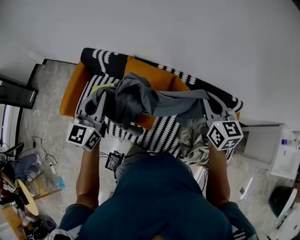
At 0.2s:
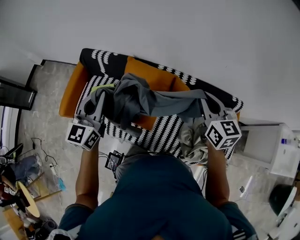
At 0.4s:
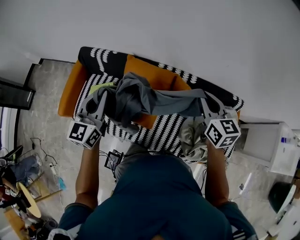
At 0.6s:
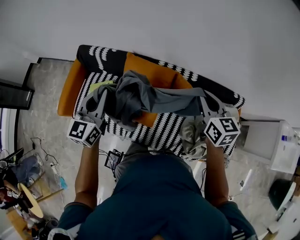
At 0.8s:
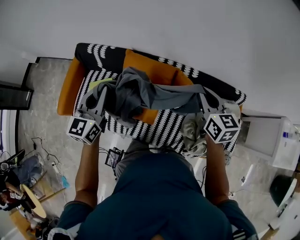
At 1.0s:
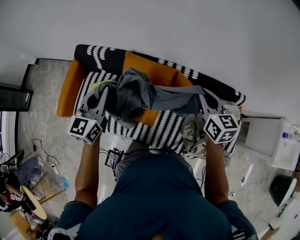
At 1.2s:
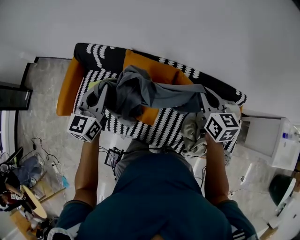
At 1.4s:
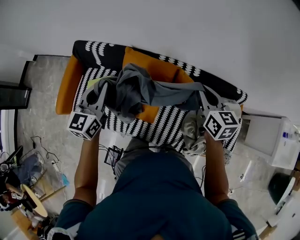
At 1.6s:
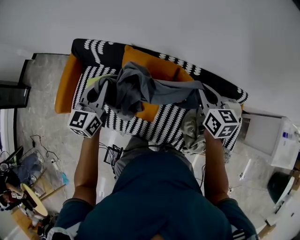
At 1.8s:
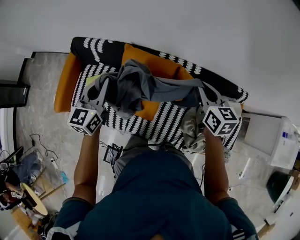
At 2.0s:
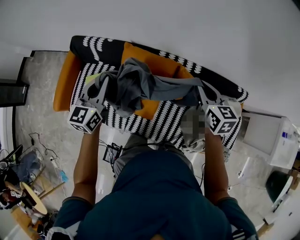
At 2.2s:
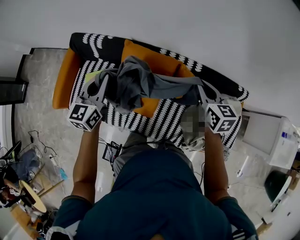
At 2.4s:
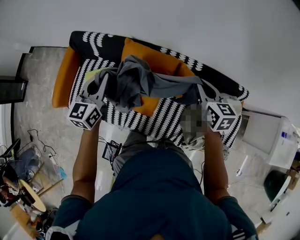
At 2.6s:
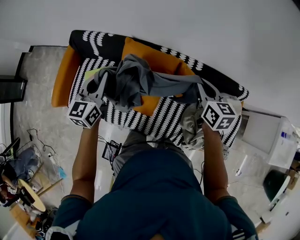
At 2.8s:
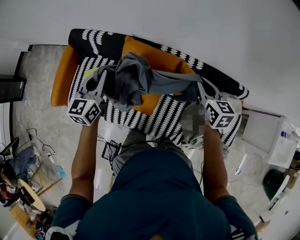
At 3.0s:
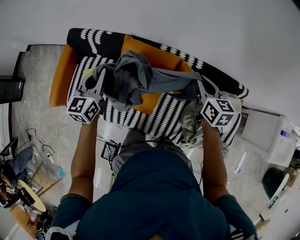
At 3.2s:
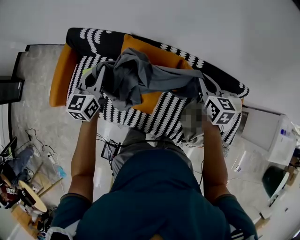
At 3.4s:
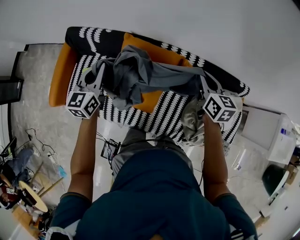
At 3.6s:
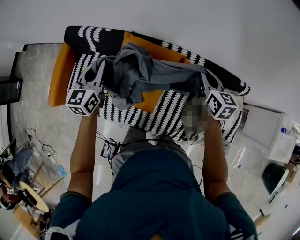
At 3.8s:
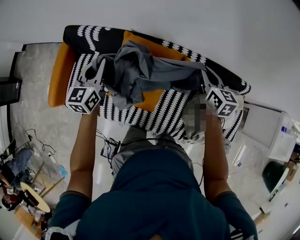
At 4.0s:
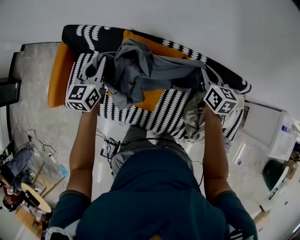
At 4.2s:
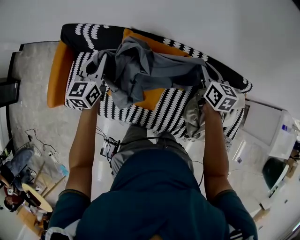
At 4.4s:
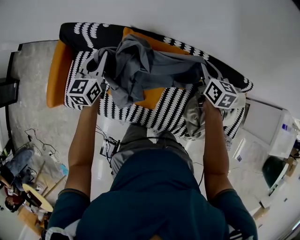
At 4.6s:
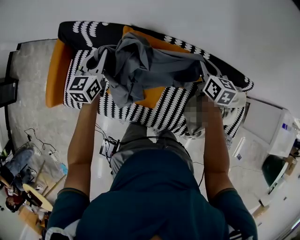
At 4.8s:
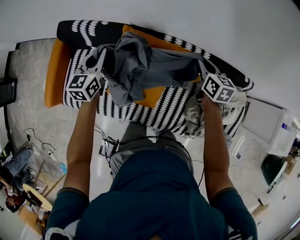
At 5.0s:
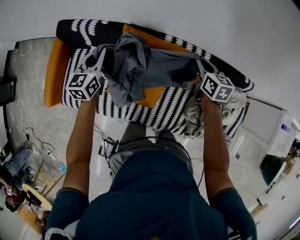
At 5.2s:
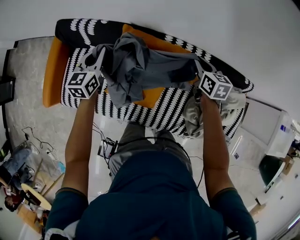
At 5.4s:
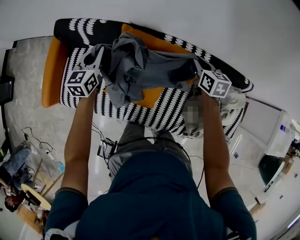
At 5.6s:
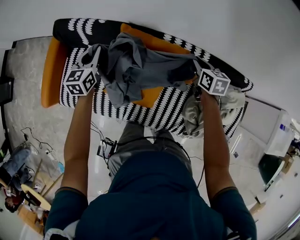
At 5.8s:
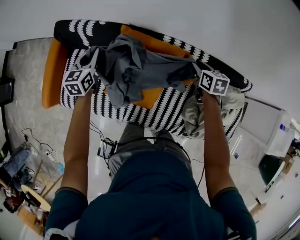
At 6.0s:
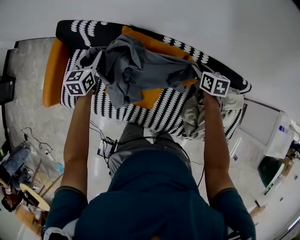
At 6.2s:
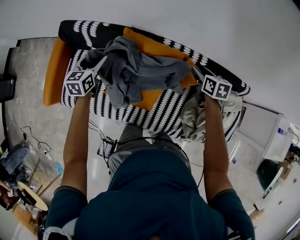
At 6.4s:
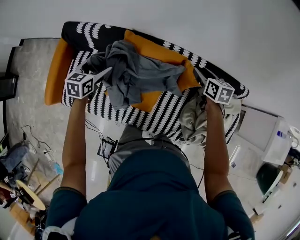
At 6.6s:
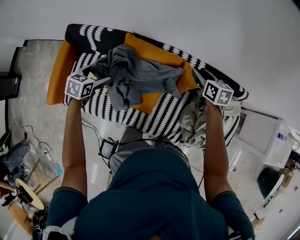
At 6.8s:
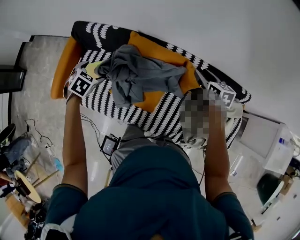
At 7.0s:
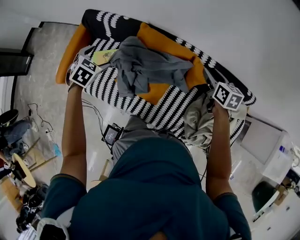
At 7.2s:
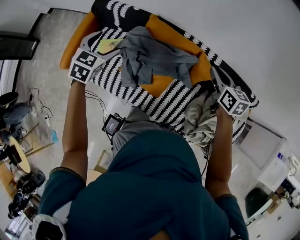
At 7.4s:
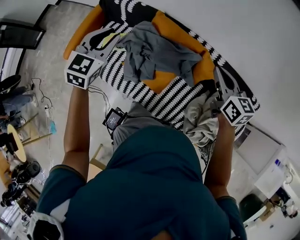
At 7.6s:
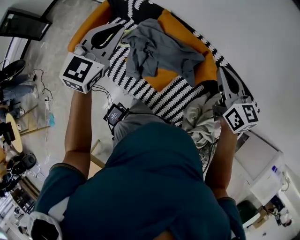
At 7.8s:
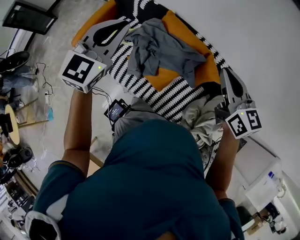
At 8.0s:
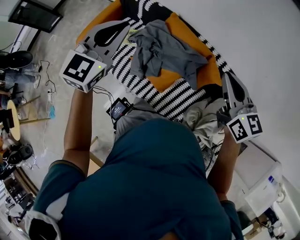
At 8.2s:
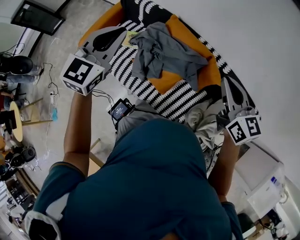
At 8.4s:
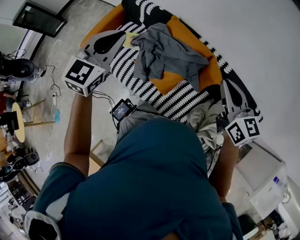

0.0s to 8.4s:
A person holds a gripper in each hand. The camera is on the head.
0.0s to 1.4s: The left gripper goes some 10 cm forward and downward. Meanwhile the right gripper heads downward and forward, covering some 10 cm.
1.4s to 2.8s: The two grippers go about 5 cm downward.
2.8s to 4.2s: Both grippers travel together forward and downward, approximately 10 cm.
4.2s to 5.6s: Both grippers travel together downward, some 10 cm.
5.6s to 7.0s: The left gripper shifts approximately 15 cm backward, tilts its fingers roughly 40 degrees downward, and opens. Meanwhile the right gripper shifts approximately 10 cm upward and backward, and opens its fingers.
7.0s to 8.4s: The grippers both shift upward and backward by some 25 cm. The left gripper angles its fingers upward, by roughly 40 degrees, and closes its fingers. The right gripper turns by about 40 degrees, and closes its fingers.

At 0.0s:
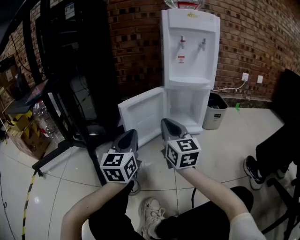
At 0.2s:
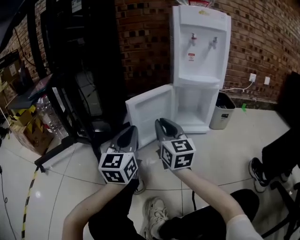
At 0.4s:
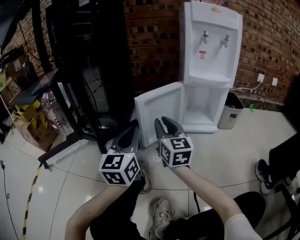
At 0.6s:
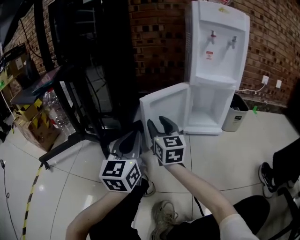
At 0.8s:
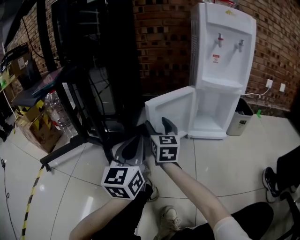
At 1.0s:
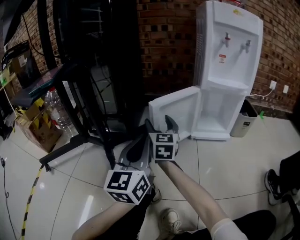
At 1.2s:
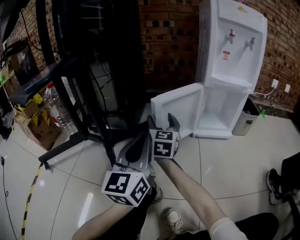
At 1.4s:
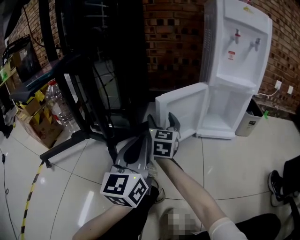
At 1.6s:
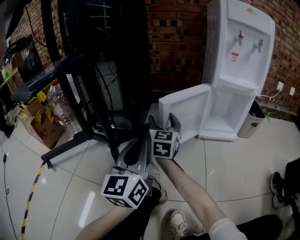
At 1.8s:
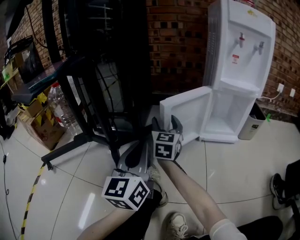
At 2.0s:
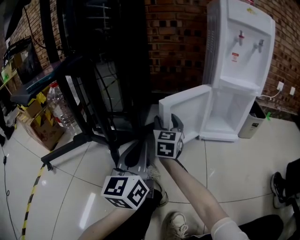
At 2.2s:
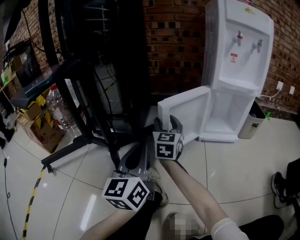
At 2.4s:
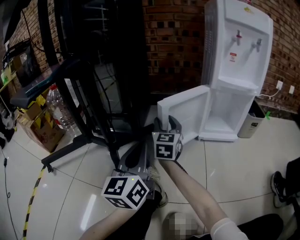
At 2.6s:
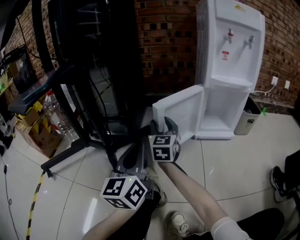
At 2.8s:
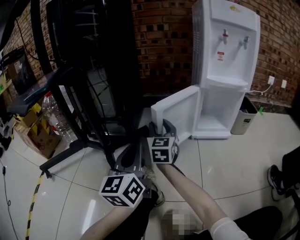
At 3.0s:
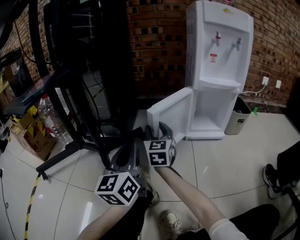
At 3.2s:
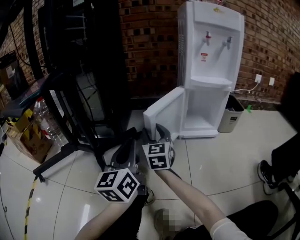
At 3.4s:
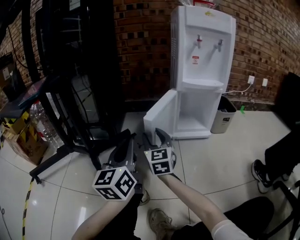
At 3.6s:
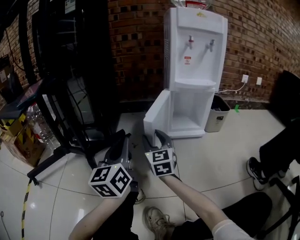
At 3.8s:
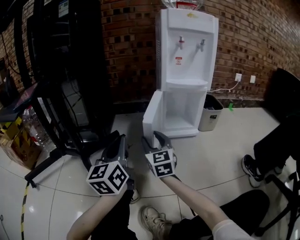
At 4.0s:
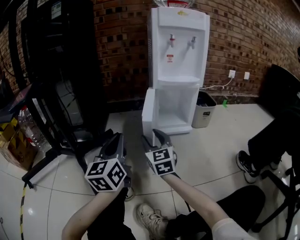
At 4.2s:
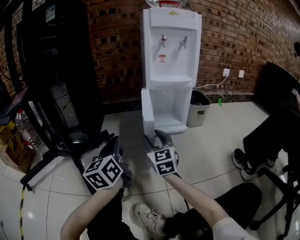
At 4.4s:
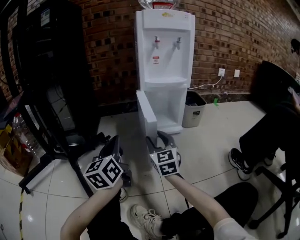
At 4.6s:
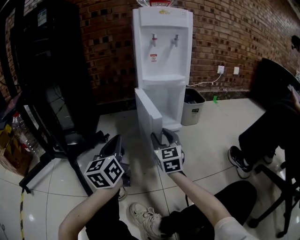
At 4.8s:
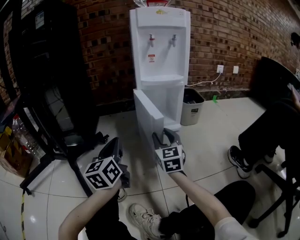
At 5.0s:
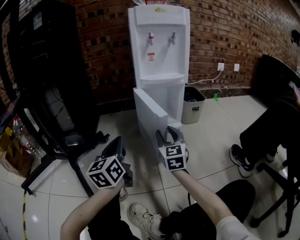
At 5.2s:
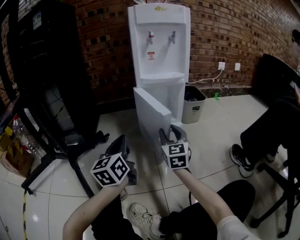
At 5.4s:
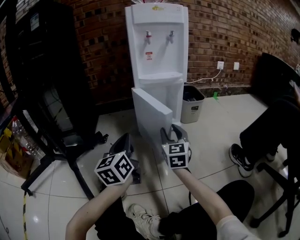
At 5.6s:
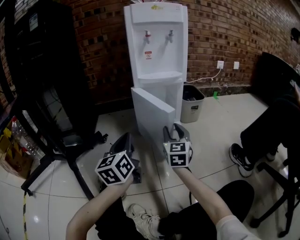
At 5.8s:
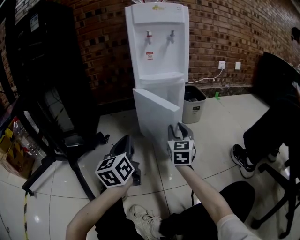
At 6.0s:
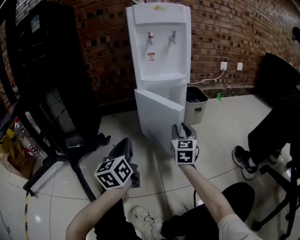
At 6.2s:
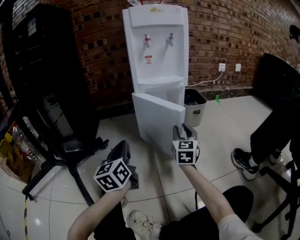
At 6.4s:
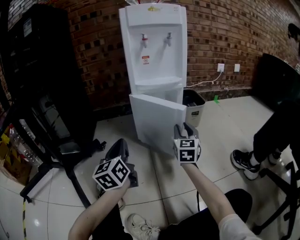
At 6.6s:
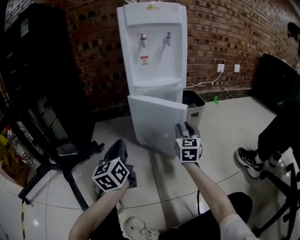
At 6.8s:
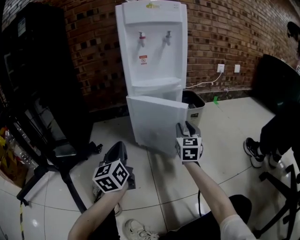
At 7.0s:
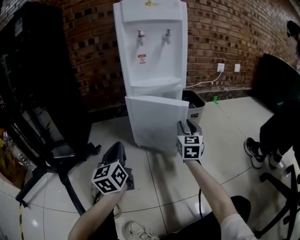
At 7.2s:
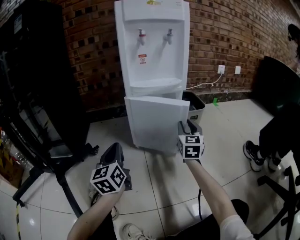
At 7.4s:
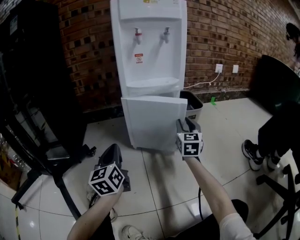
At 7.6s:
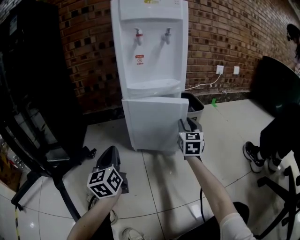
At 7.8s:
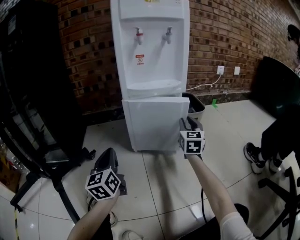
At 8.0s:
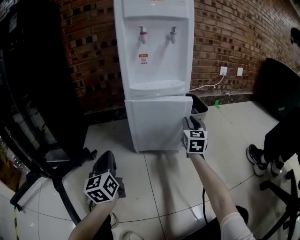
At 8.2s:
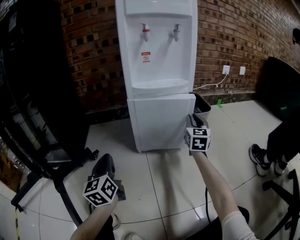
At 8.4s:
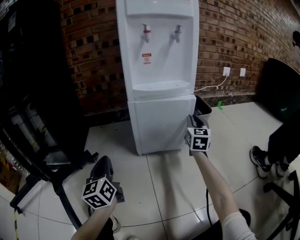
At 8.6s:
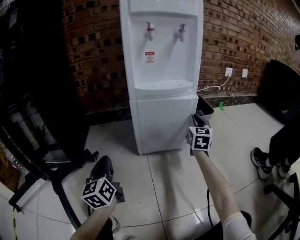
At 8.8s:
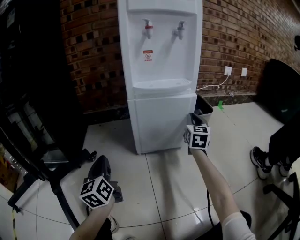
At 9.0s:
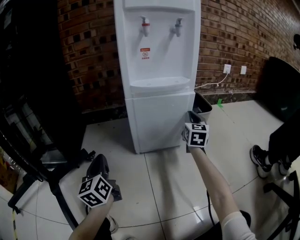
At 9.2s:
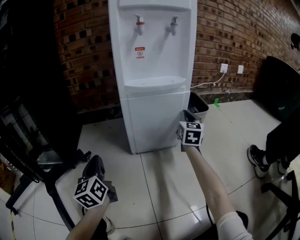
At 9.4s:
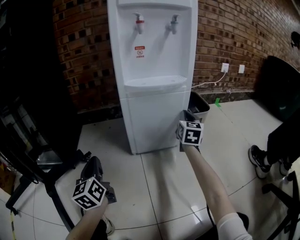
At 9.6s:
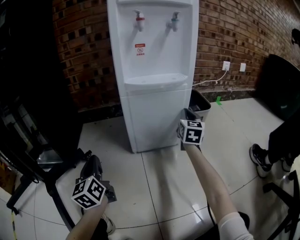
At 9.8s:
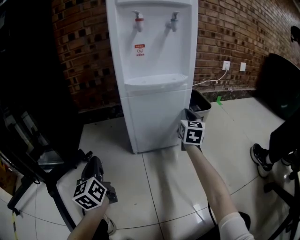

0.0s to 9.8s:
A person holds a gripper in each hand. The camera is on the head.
0.0s to 1.4s: The right gripper shifts roughly 25 cm to the left, forward and downward, and opens its fingers. The left gripper heads to the left, covering roughly 10 cm.
1.4s to 2.8s: The right gripper closes up.
2.8s to 4.2s: The left gripper shifts some 10 cm to the right. The right gripper is displaced to the right and backward by about 20 cm.
4.2s to 5.6s: The right gripper travels to the right by about 15 cm; the left gripper heads to the right, covering about 10 cm.
5.6s to 7.0s: The right gripper travels forward and to the right by about 15 cm, while the left gripper is displaced forward by about 5 cm.
7.0s to 8.4s: The right gripper is displaced forward by approximately 10 cm; the left gripper goes about 5 cm to the left.
8.4s to 9.8s: The grippers stay close to where they were, moving slightly.

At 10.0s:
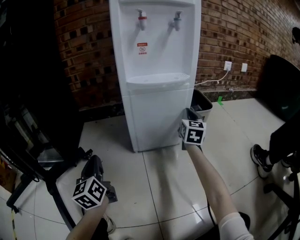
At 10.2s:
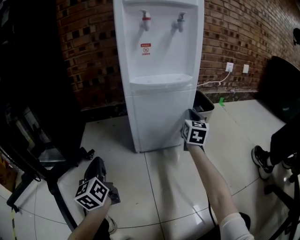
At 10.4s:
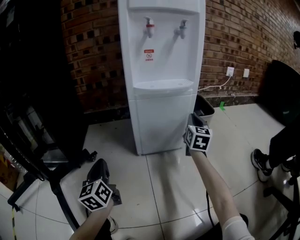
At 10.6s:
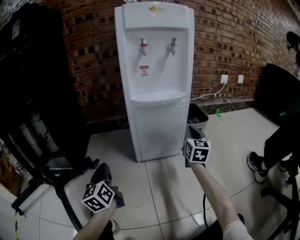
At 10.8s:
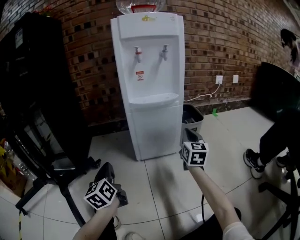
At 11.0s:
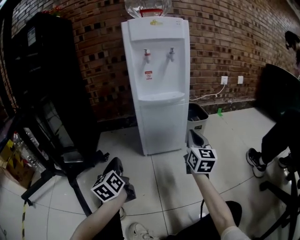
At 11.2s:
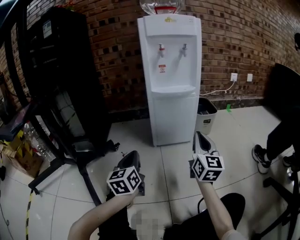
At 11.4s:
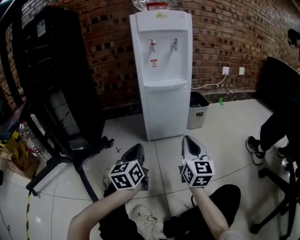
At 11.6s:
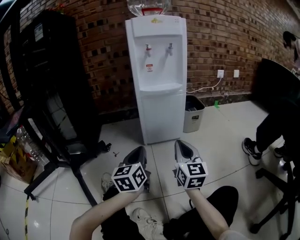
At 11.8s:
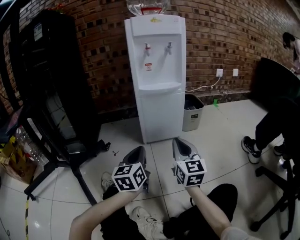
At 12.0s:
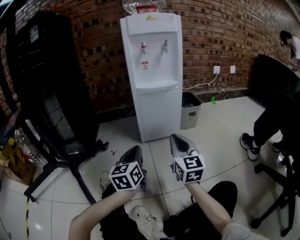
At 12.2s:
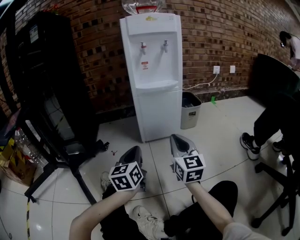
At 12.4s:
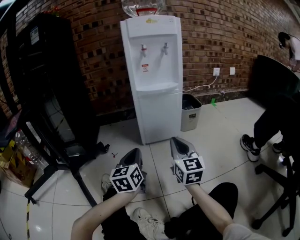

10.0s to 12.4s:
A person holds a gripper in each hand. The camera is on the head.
10.0s to 11.2s: The left gripper moves backward, to the right and upward, roughly 15 cm. The right gripper shifts approximately 25 cm backward.
11.2s to 12.4s: The right gripper moves to the left, some 5 cm. The left gripper shifts roughly 5 cm to the right.

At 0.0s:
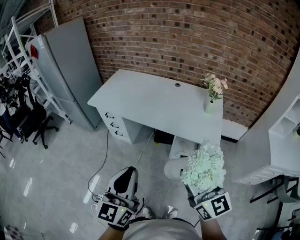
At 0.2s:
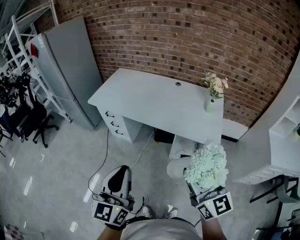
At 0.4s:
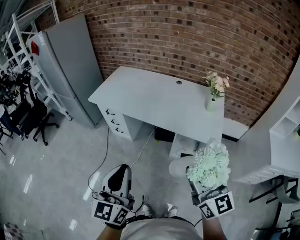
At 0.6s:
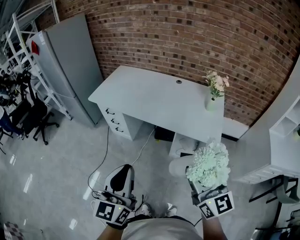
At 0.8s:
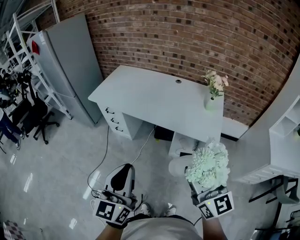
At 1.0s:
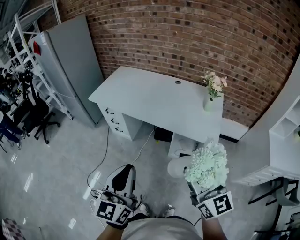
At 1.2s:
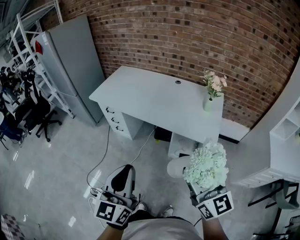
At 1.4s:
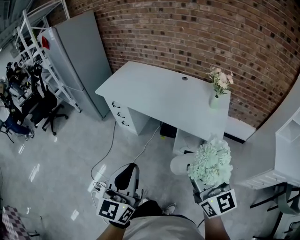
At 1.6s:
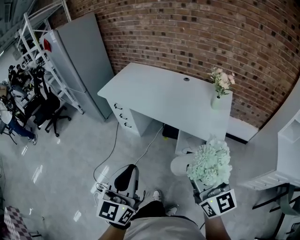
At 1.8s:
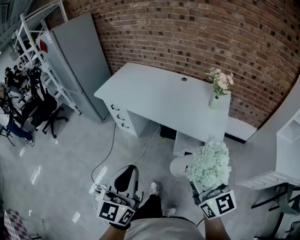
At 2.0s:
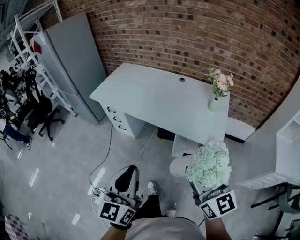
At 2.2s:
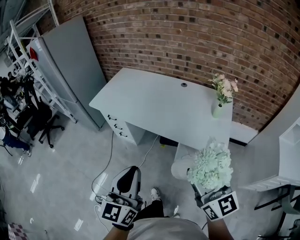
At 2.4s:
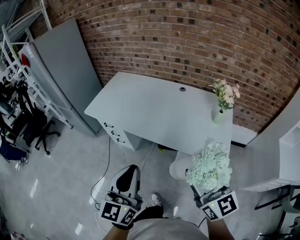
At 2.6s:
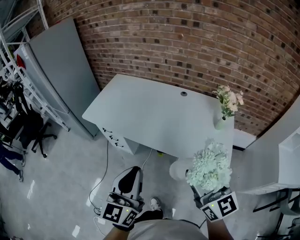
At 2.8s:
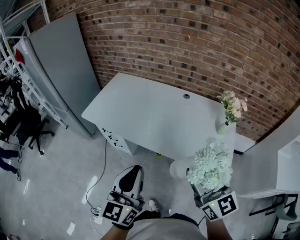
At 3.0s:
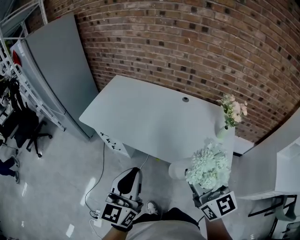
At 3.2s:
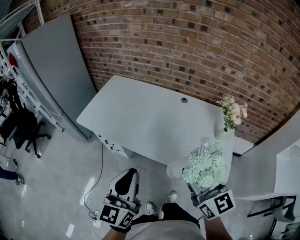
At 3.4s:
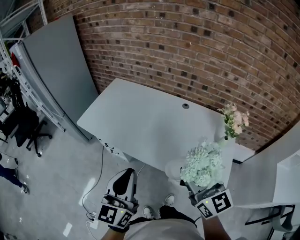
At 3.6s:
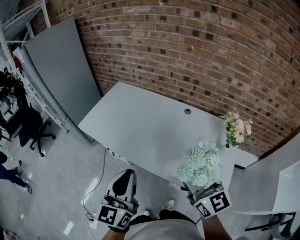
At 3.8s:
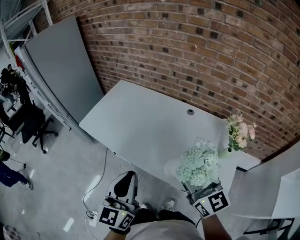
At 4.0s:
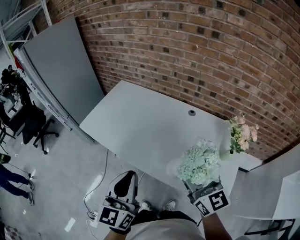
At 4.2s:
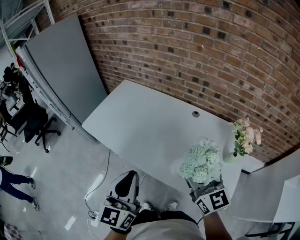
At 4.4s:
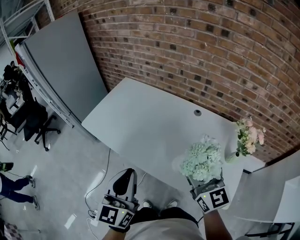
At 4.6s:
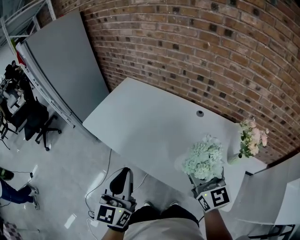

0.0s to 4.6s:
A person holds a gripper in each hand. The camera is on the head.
0.0s to 1.6s: The grippers both shift to the right by some 5 cm.
1.6s to 3.0s: Both grippers move forward, about 30 cm.
3.0s to 4.6s: The two grippers go some 15 cm forward.
